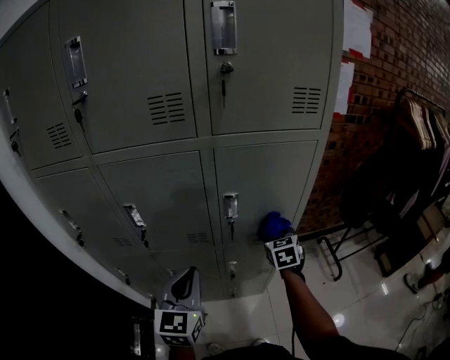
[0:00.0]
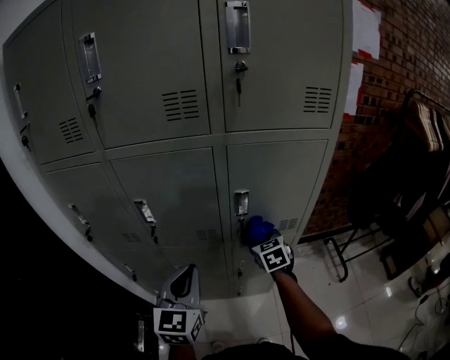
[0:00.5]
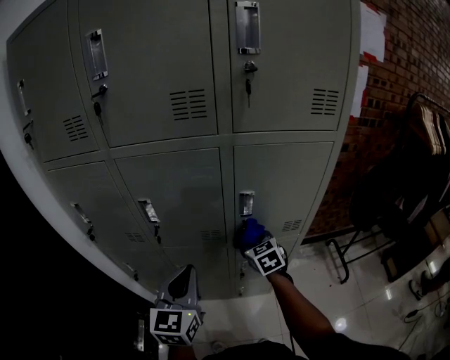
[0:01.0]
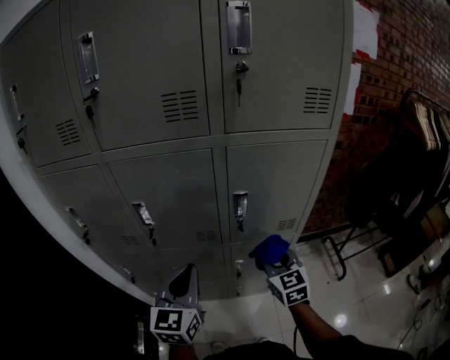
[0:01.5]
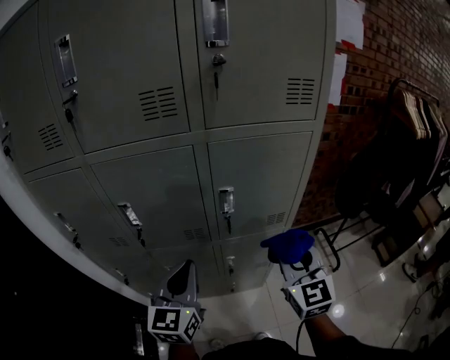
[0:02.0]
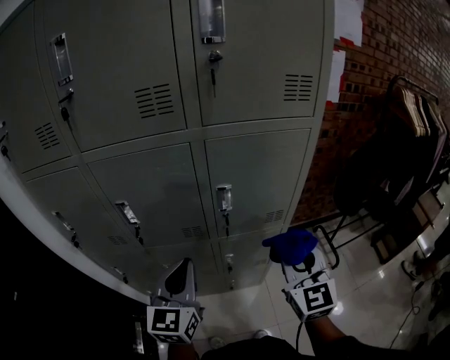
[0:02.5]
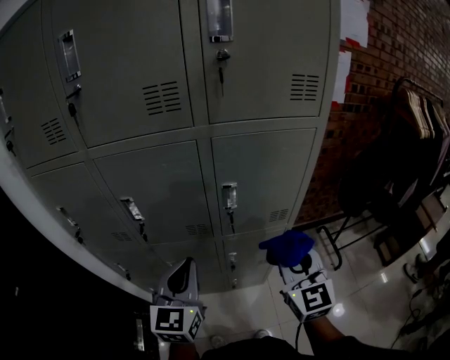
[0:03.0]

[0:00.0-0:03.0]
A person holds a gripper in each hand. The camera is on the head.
0:00.0 to 0:01.5: The right gripper goes some 10 cm backward and to the left.
0:01.5 to 0:03.0: The right gripper travels upward and backward by roughly 15 cm.

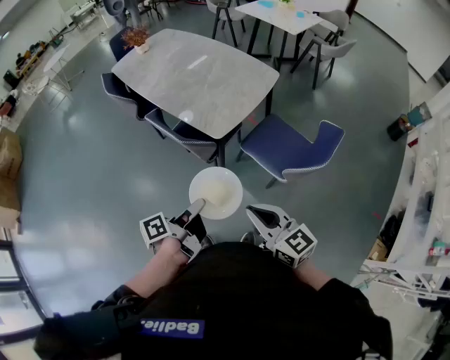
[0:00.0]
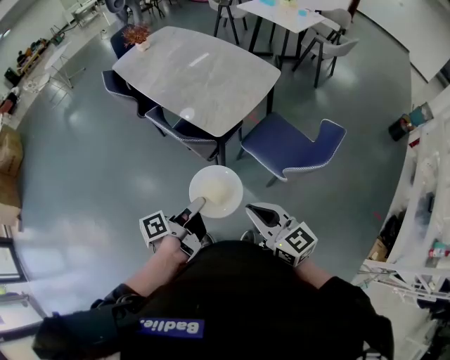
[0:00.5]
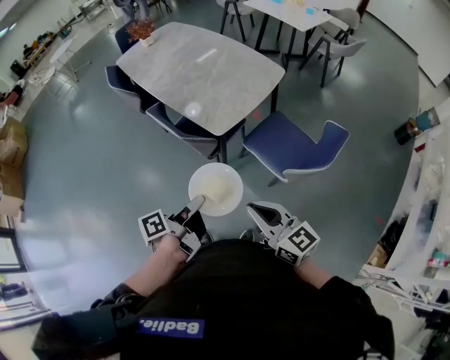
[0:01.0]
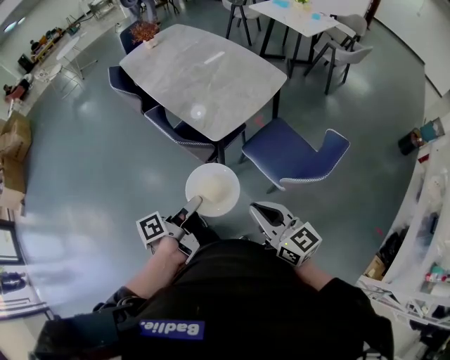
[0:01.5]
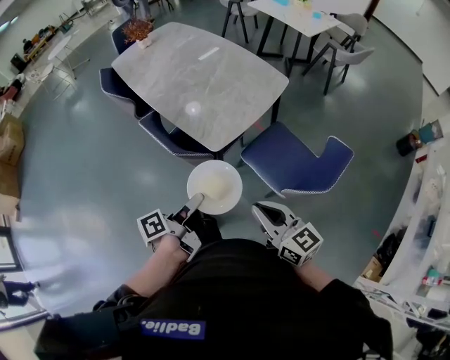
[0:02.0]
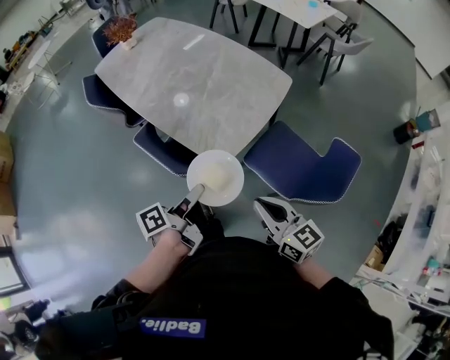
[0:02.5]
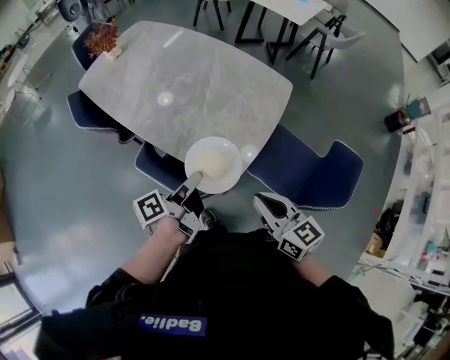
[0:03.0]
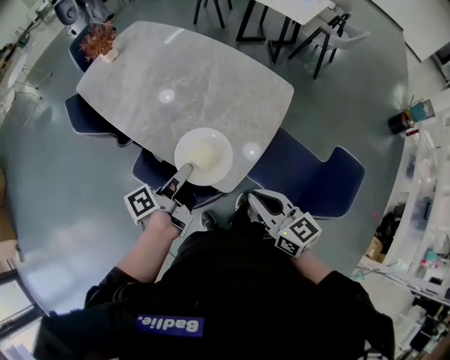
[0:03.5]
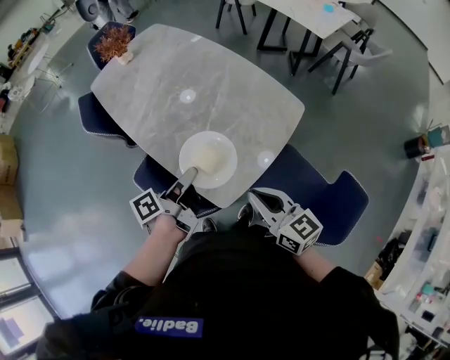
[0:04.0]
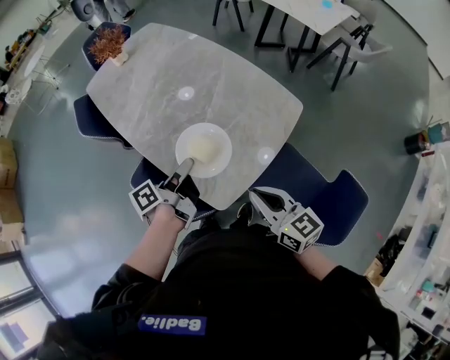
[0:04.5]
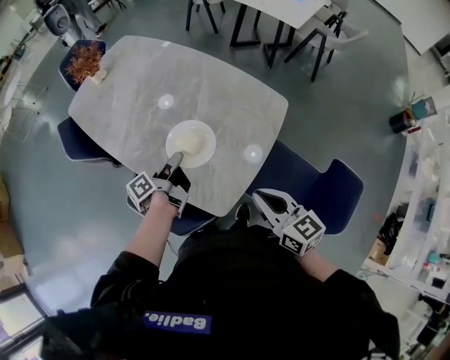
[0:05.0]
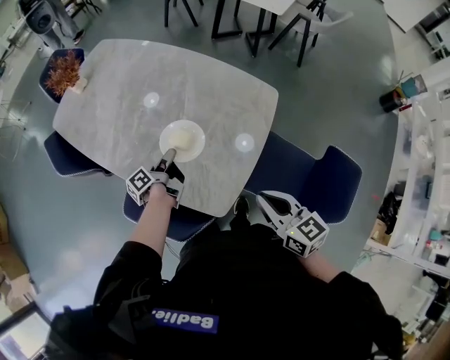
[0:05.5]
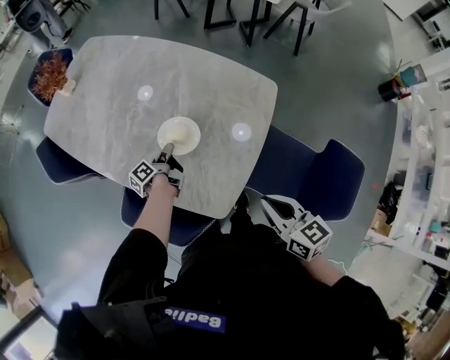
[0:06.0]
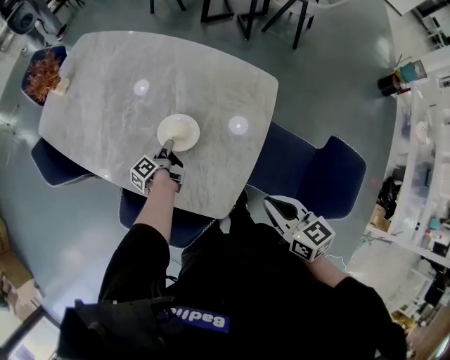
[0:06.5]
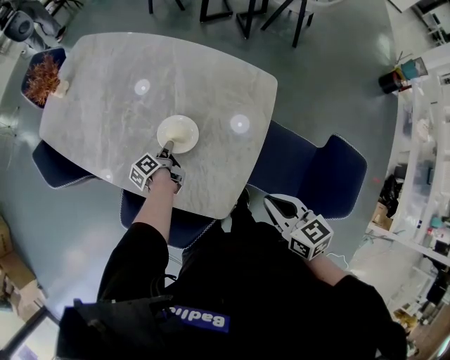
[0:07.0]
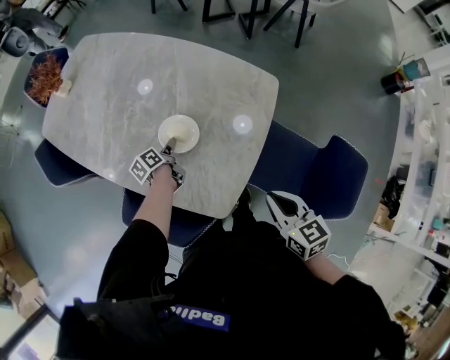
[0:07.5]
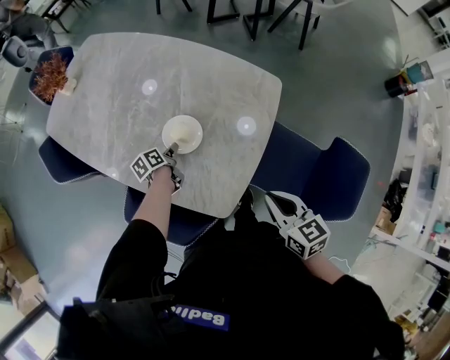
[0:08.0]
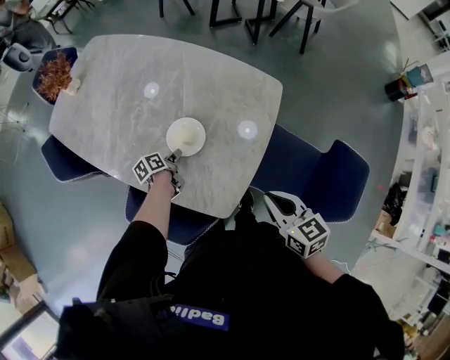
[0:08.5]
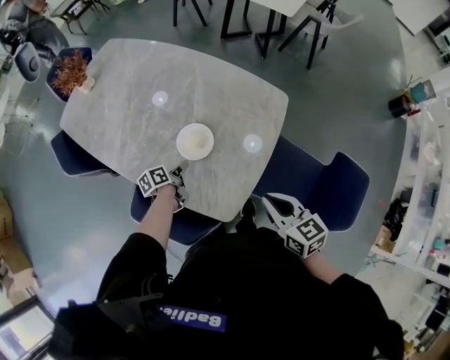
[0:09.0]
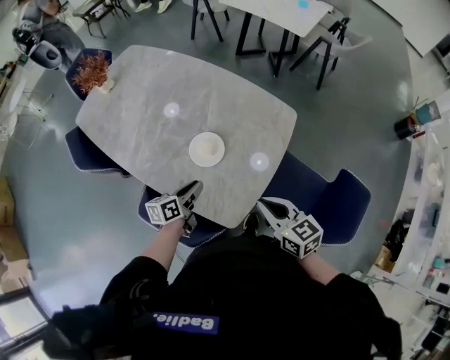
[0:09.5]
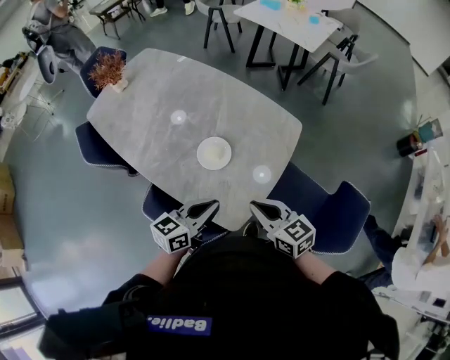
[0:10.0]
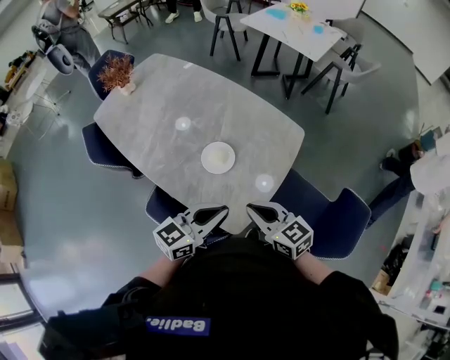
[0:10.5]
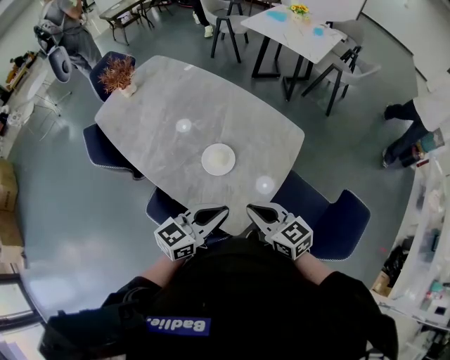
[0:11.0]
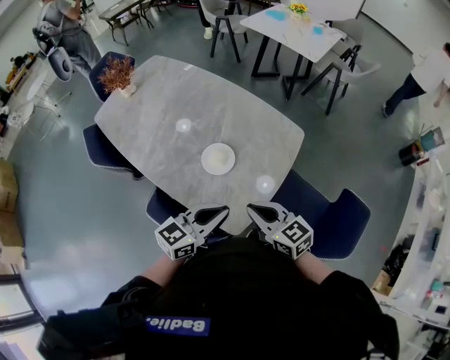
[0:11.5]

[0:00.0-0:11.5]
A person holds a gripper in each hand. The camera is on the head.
0:00.0 to 0:02.0: The right gripper changes place by roughly 10 cm.
0:02.0 to 0:04.0: The right gripper shifts by roughly 35 cm.
0:04.0 to 0:06.0: The right gripper is displaced downward by some 5 cm, and changes its angle by about 20 degrees.
0:07.5 to 0:09.5: The right gripper shifts by about 5 cm.
0:09.5 to 0:11.5: The right gripper changes place by roughly 5 cm.

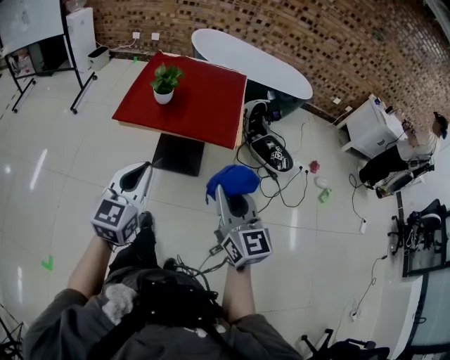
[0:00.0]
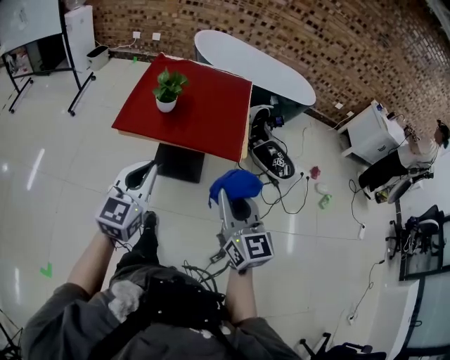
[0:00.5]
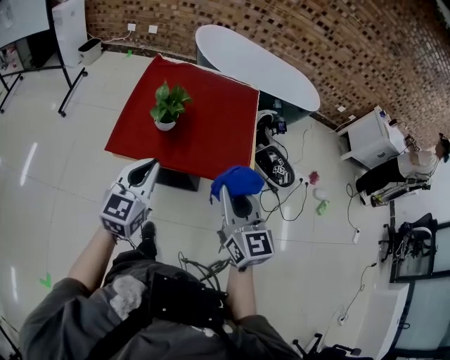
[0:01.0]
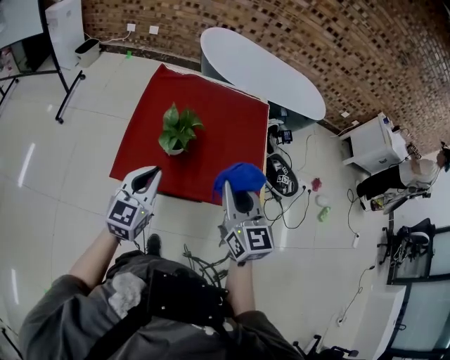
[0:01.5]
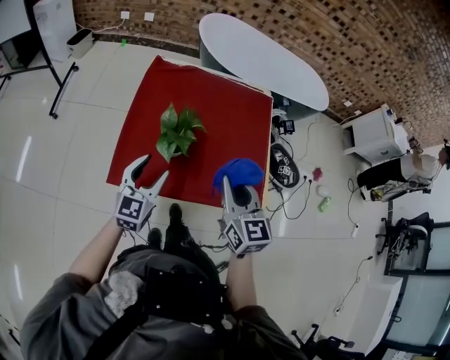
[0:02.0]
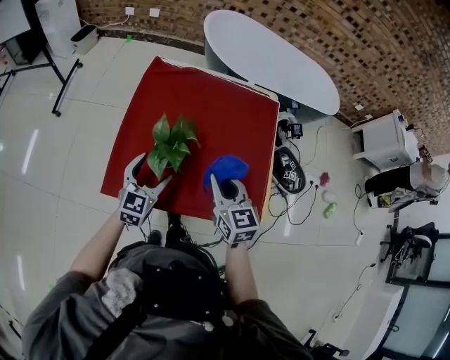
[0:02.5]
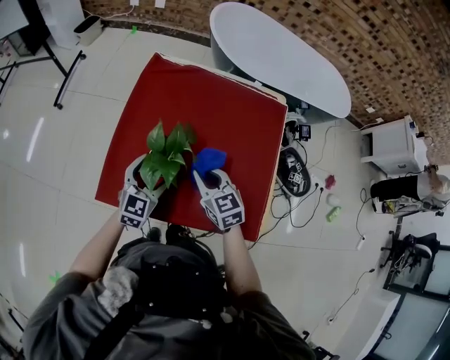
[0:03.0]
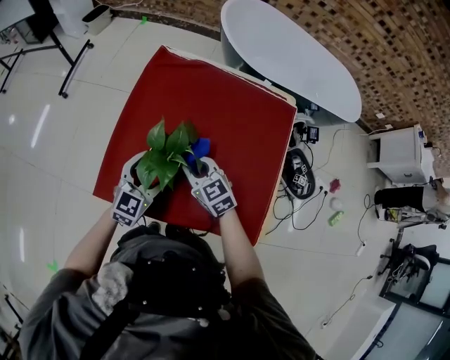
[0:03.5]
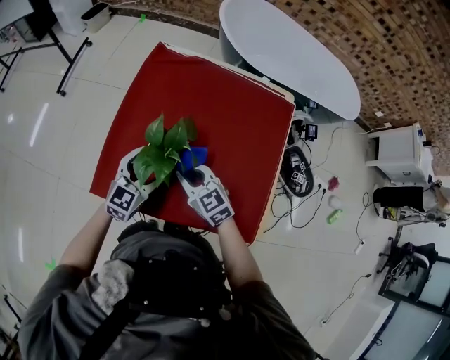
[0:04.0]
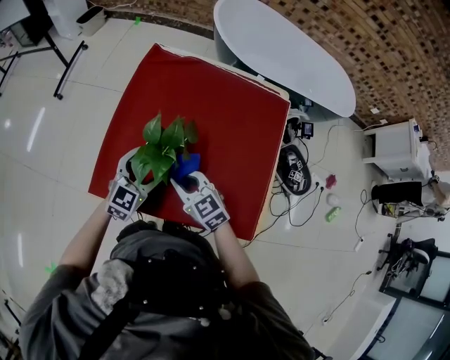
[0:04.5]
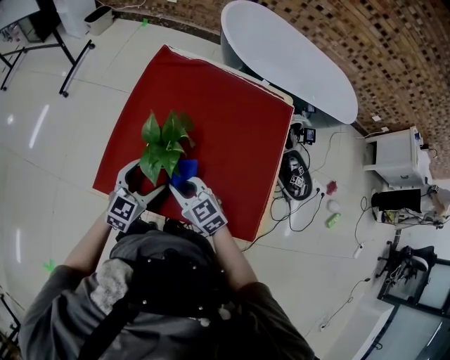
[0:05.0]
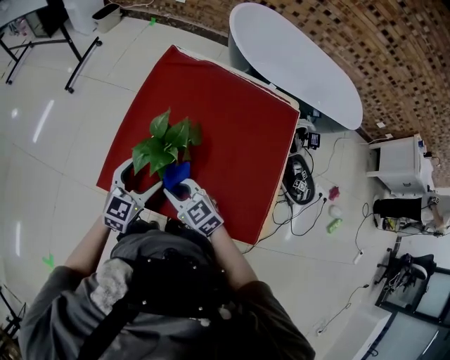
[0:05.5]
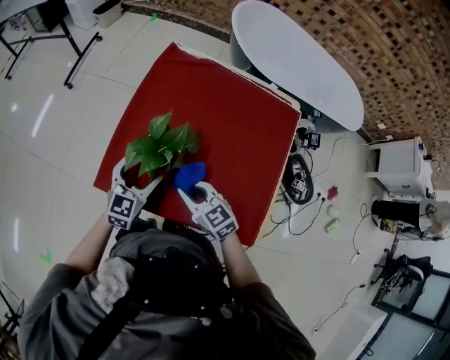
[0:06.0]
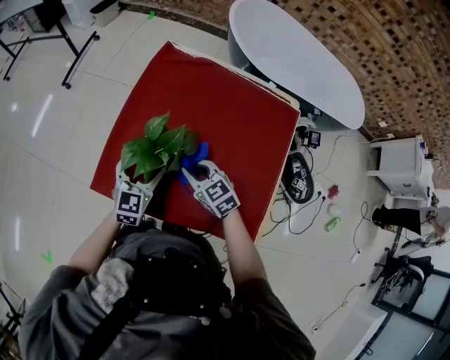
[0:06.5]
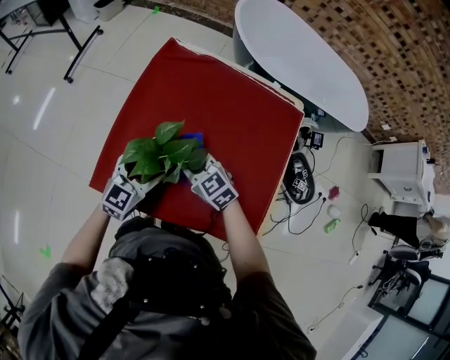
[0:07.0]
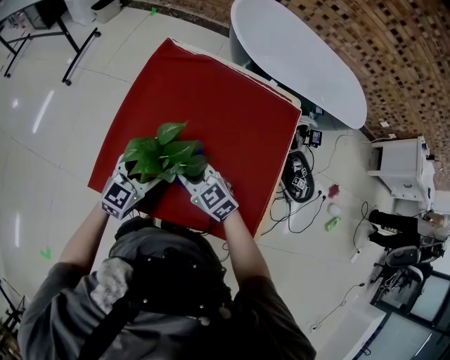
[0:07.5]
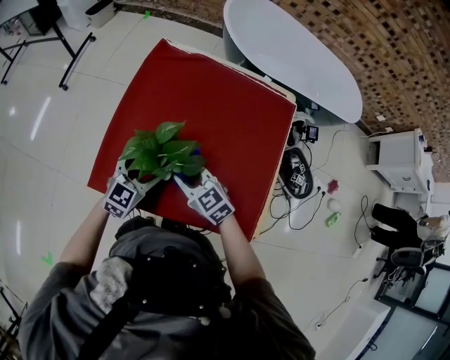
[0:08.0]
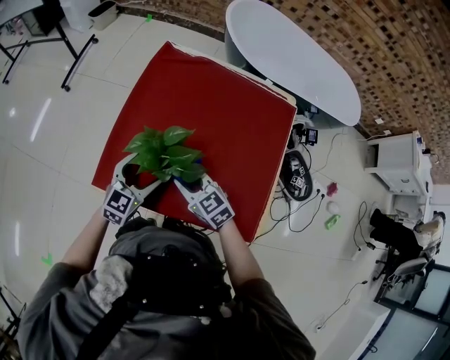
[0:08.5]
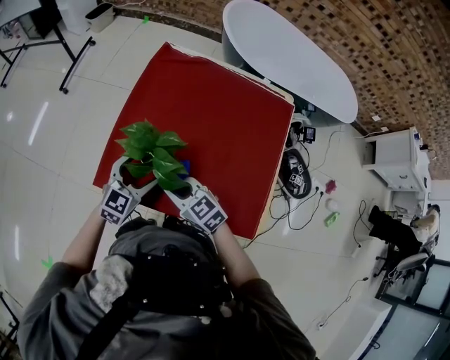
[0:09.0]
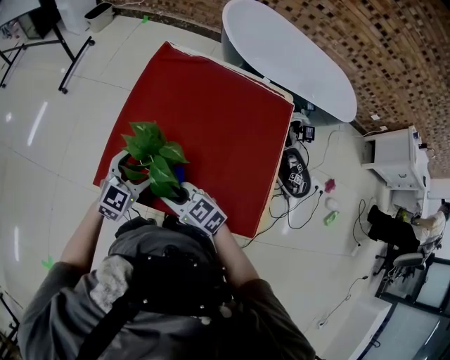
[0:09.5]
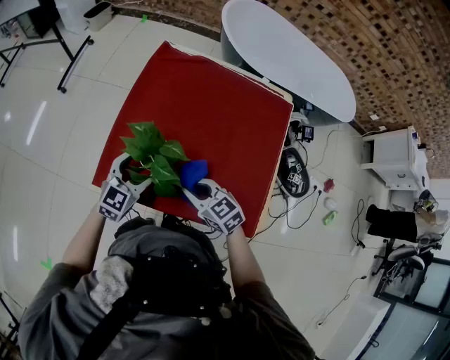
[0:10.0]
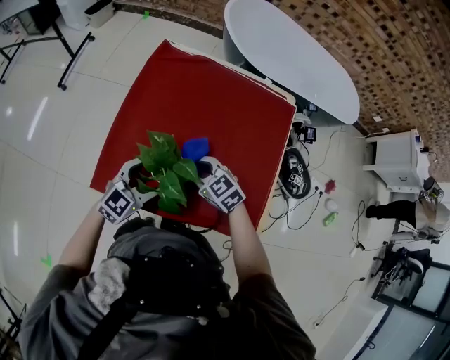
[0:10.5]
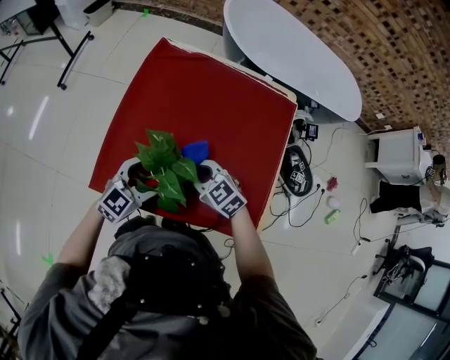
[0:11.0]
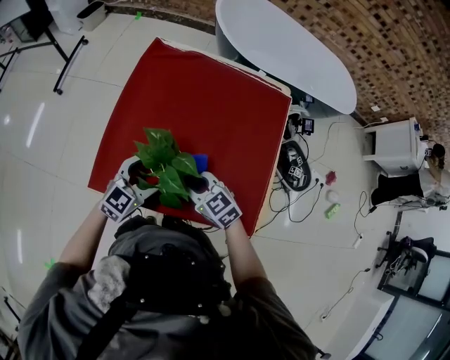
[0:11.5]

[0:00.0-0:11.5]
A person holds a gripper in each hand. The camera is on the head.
0:00.0 to 0:02.0: The two grippers travel together, forward, about 60 cm. The left gripper opens up.
0:02.0 to 0:04.0: The left gripper heads forward, downward and to the right, covering approximately 20 cm. The right gripper travels downward and forward by about 25 cm, and changes its angle by about 40 degrees.
0:04.0 to 0:06.0: The right gripper shifts some 5 cm backward, and travels to the left and back again, some 10 cm each way. Meanwhile the left gripper shifts by about 5 cm.
0:06.0 to 0:07.5: The right gripper shifts about 5 cm forward.
0:07.5 to 0:09.5: The right gripper goes about 15 cm backward and to the left, while the left gripper changes place by roughly 5 cm.
0:09.5 to 0:11.5: The right gripper travels to the right by roughly 10 cm. The left gripper goes roughly 5 cm to the right.

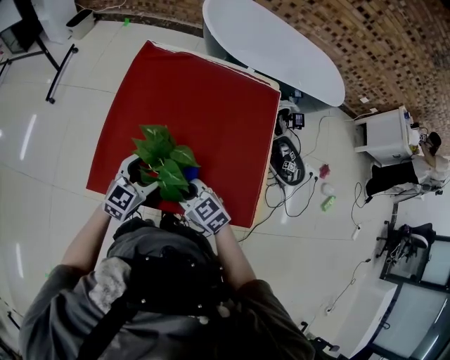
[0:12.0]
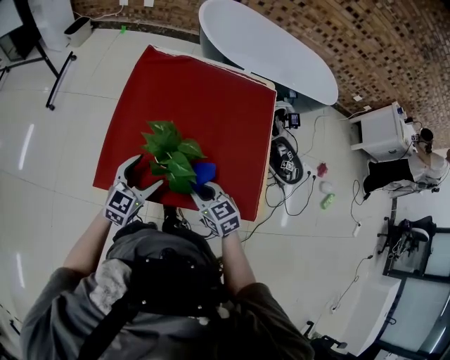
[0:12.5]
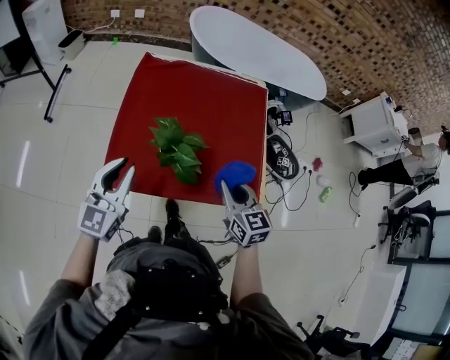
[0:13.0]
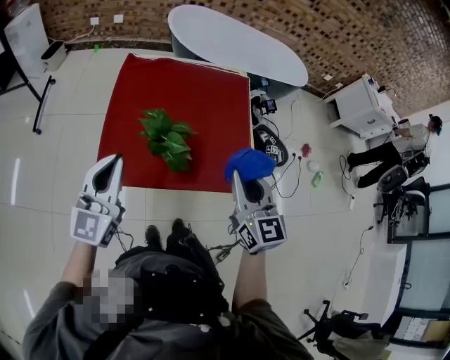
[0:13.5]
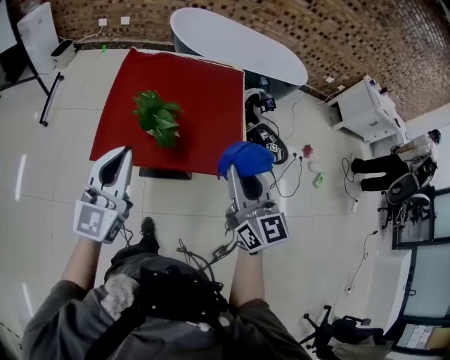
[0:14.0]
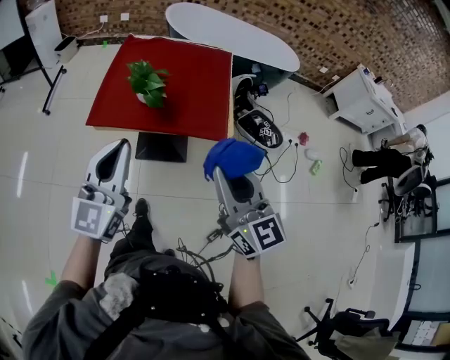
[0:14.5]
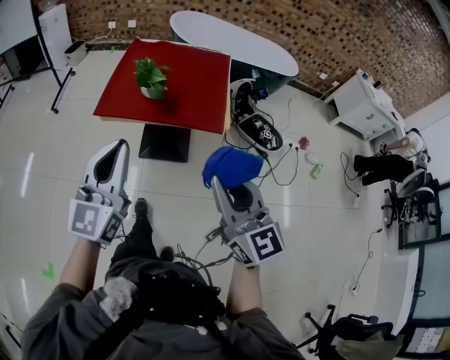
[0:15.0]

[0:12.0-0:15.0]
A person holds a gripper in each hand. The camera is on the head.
0:12.0 to 0:13.5: The right gripper shifts approximately 30 cm upward, backward and to the right, and changes its angle by some 50 degrees. The left gripper travels upward, backward and to the left by roughly 30 cm, changes its angle by about 30 degrees, and closes up.
0:13.5 to 0:15.0: Both grippers are carried backward, roughly 50 cm.
